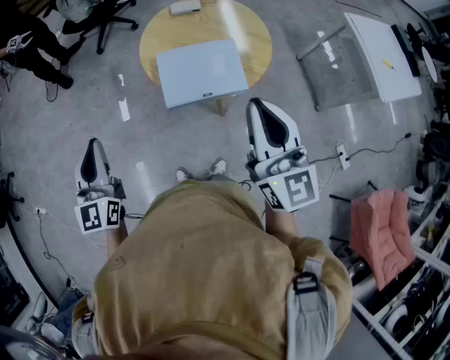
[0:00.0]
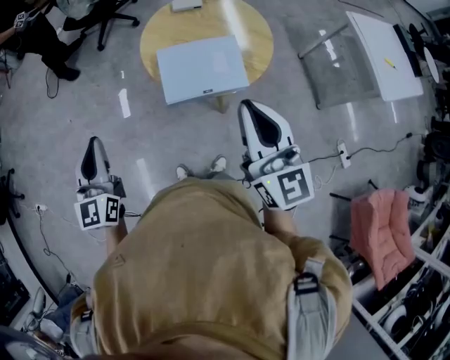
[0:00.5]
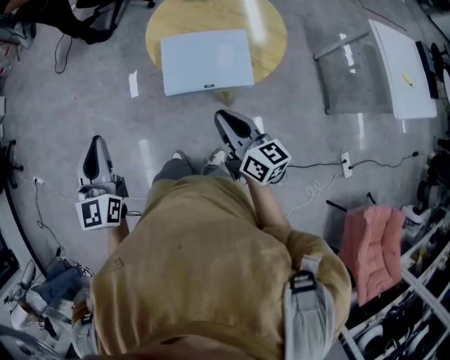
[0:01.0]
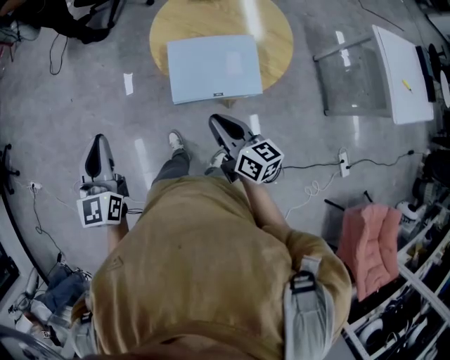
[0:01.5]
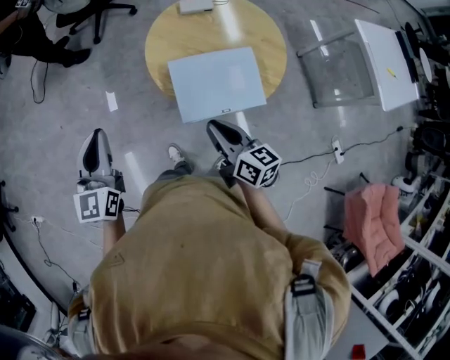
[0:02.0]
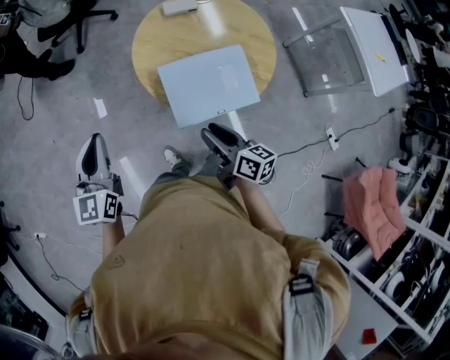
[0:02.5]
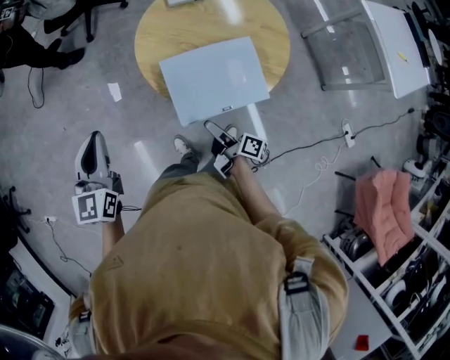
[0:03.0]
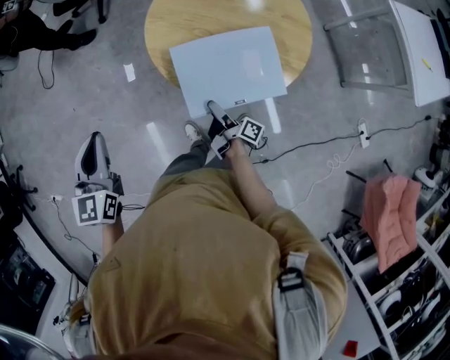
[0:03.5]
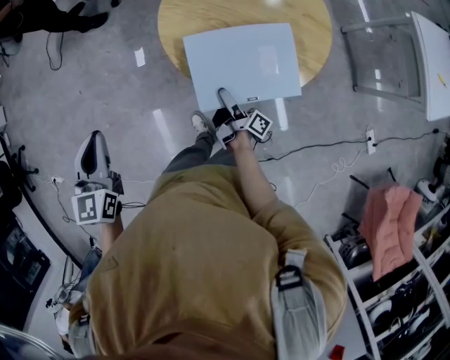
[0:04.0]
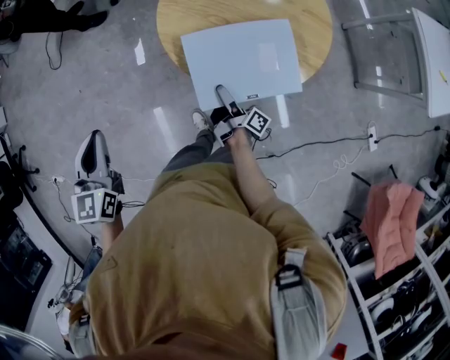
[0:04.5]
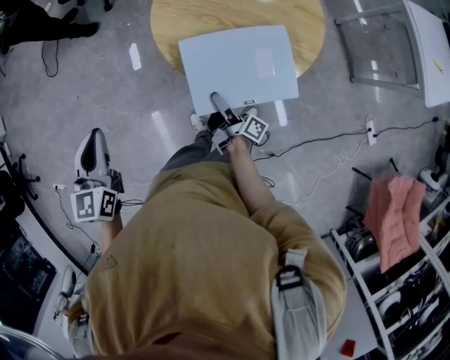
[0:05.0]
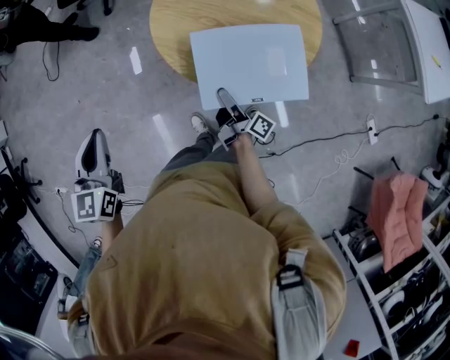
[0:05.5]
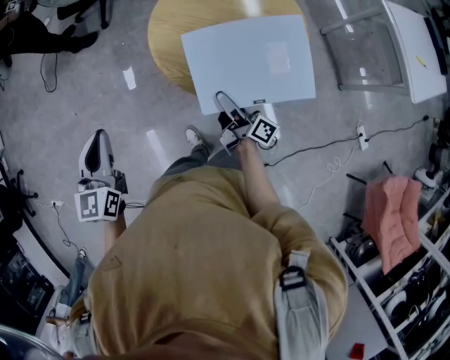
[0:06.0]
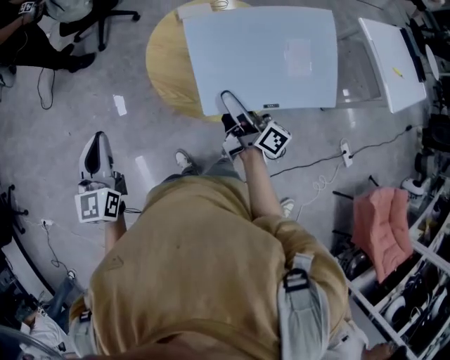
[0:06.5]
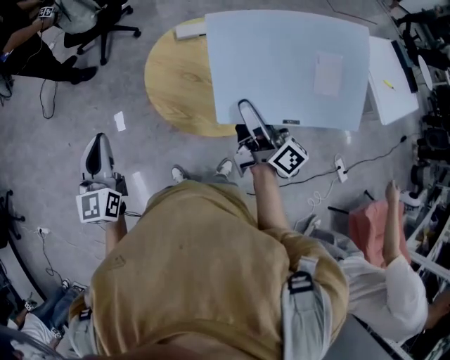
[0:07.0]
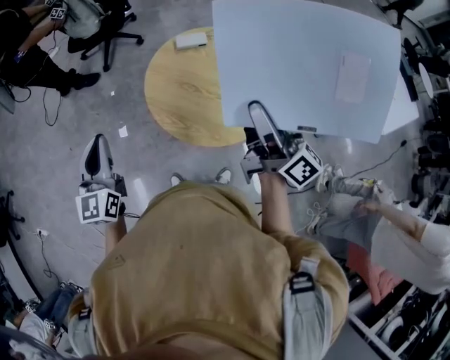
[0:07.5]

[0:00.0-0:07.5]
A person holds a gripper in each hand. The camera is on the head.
0:00.0 to 0:02.0: The right gripper travels downward, to the left and forward by some 25 cm, and turns by about 40 degrees. Meanwhile the left gripper shifts approximately 15 cm forward.
0:02.0 to 0:04.0: The right gripper heads downward, covering approximately 20 cm, twists about 60 degrees clockwise, seen from behind, and opens its fingers.
0:04.0 to 0:05.5: The grippers move only a little.
0:05.5 to 0:07.5: The left gripper shifts approximately 10 cm upward and forward, and changes its angle by about 20 degrees. Meanwhile the right gripper shifts roughly 35 cm upward, and swivels approximately 40 degrees.

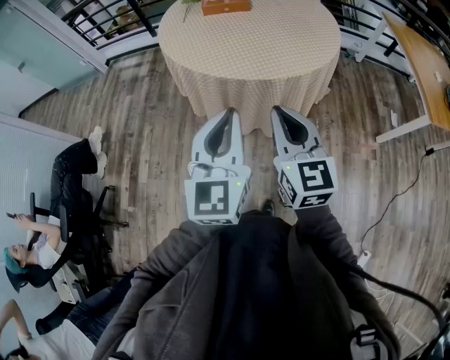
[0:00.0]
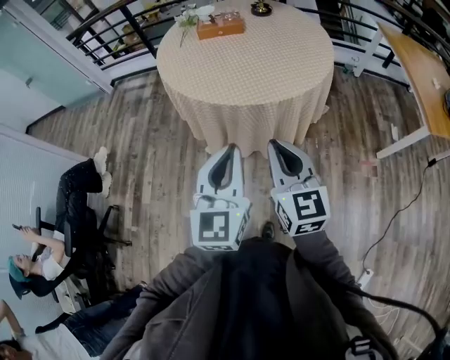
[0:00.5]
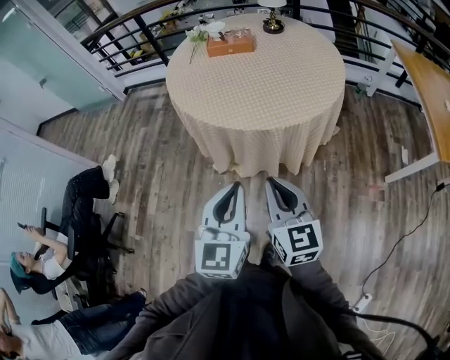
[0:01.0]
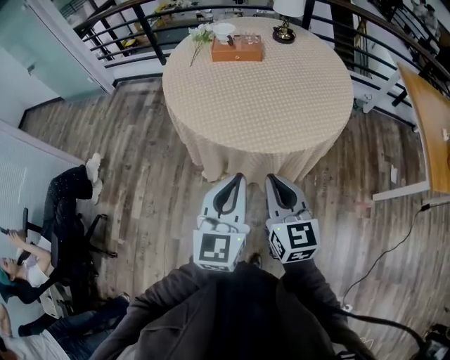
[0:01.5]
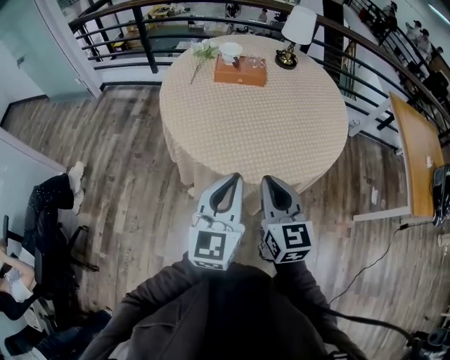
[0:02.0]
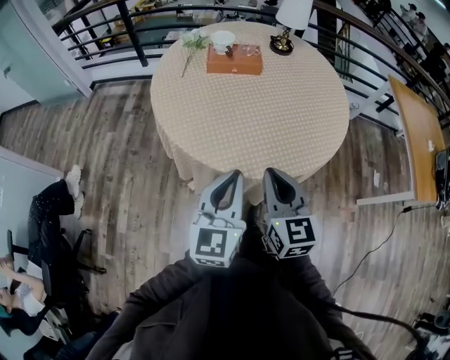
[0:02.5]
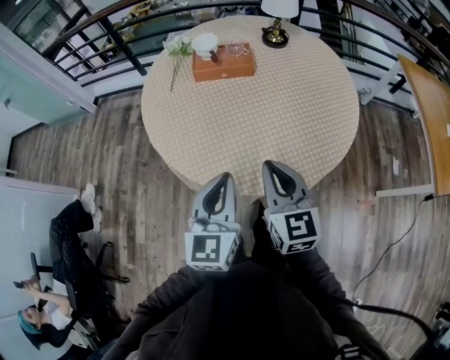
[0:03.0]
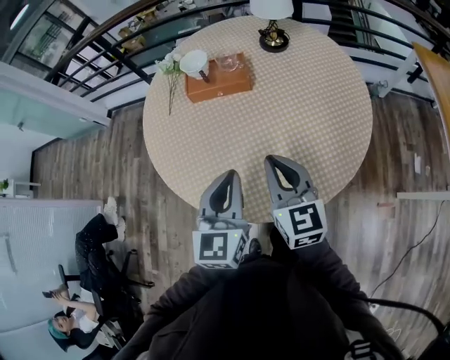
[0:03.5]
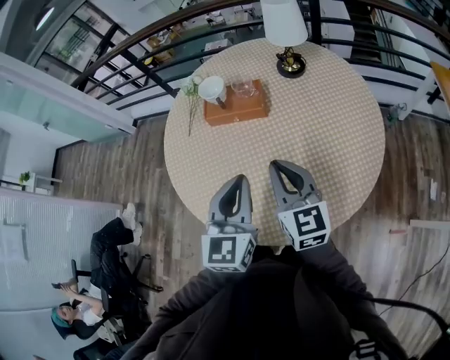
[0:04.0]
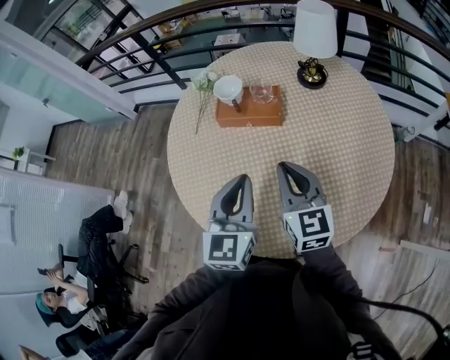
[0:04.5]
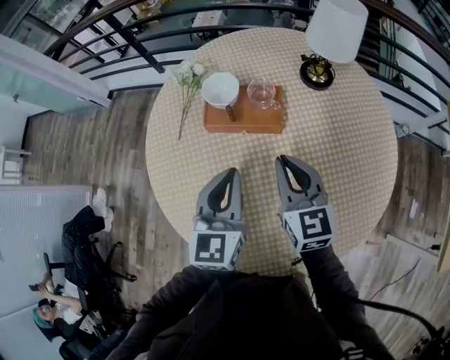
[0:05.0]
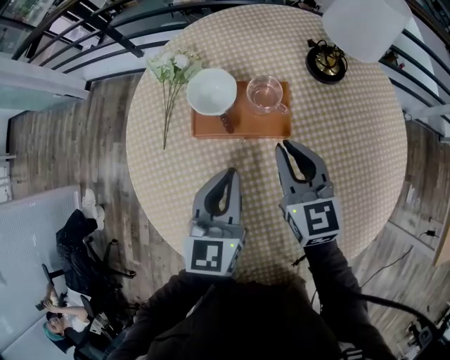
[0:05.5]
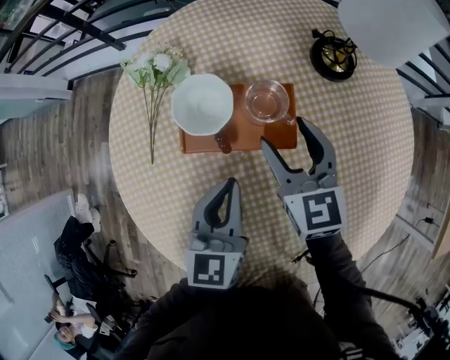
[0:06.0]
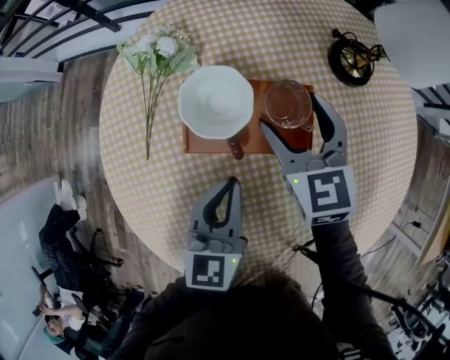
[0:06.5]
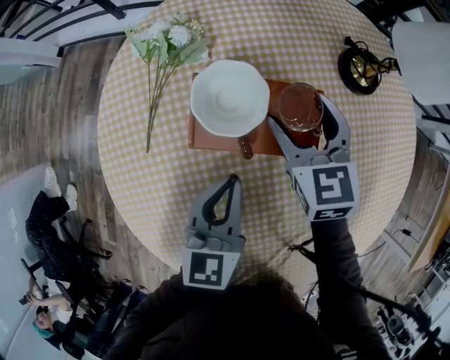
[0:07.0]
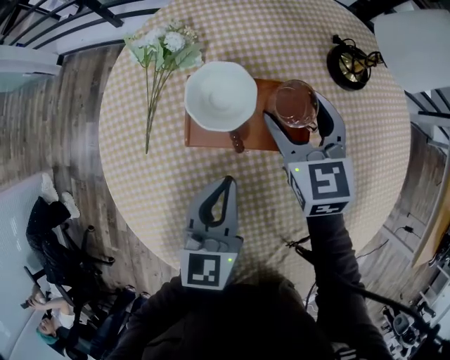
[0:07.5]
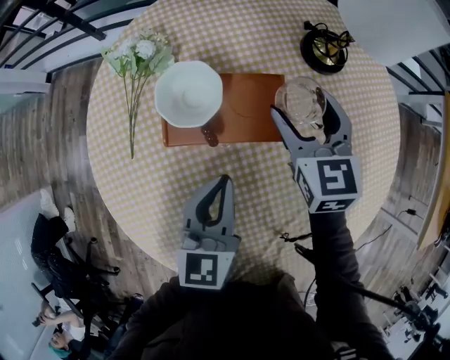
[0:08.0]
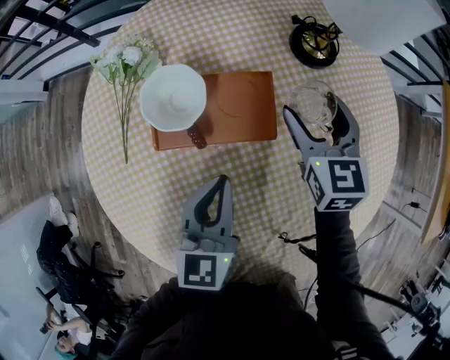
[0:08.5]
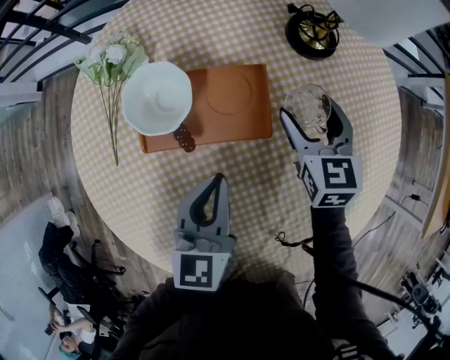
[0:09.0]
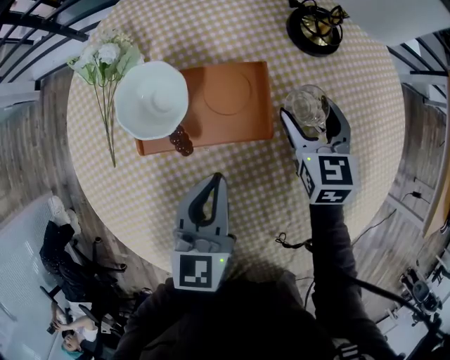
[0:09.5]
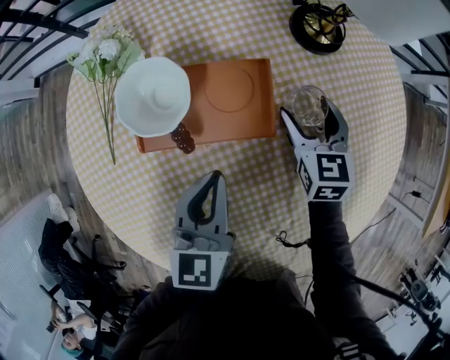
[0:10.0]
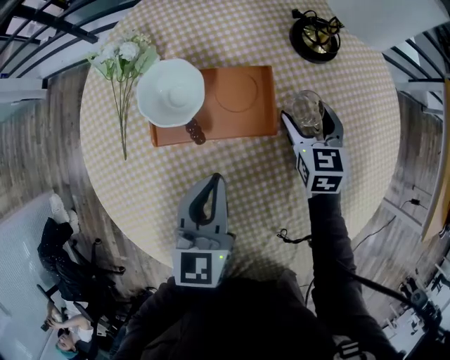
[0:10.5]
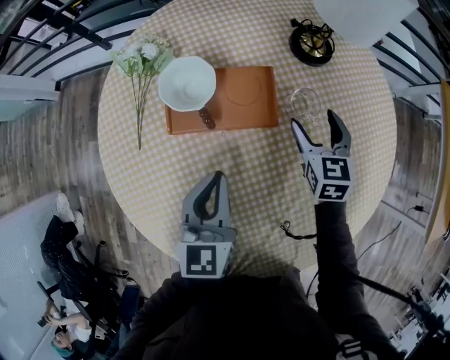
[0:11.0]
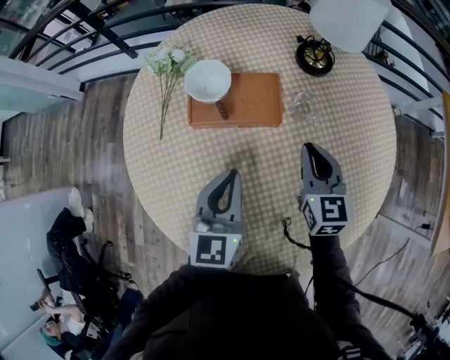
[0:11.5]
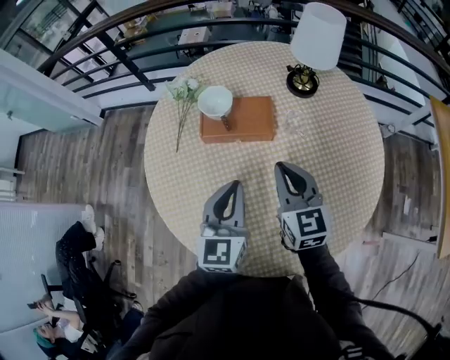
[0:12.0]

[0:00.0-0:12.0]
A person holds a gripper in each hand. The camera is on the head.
0:00.0 to 0:02.0: The grippers both shift forward by some 25 cm.
0:02.0 to 0:04.0: The right gripper heads forward, covering roughly 25 cm, while the left gripper heads forward and to the right, covering some 25 cm.
0:04.0 to 0:06.0: The left gripper heads forward and downward, covering about 30 cm. Meanwhile the right gripper heads forward, covering roughly 30 cm, and opens up.
0:06.0 to 0:08.0: The right gripper goes about 5 cm to the right.
0:08.0 to 0:10.0: The right gripper travels downward and to the right by roughly 15 cm.
0:10.0 to 0:12.0: The right gripper heads backward and upward, covering some 25 cm, changes its angle by roughly 20 degrees, and closes its fingers; the left gripper heads upward and backward, covering roughly 20 cm.

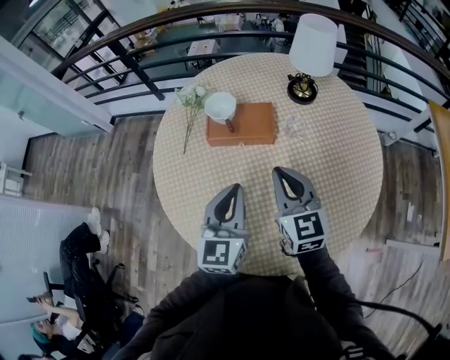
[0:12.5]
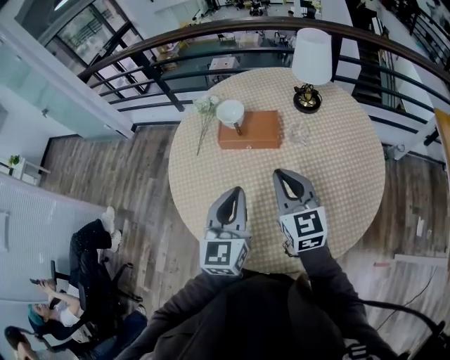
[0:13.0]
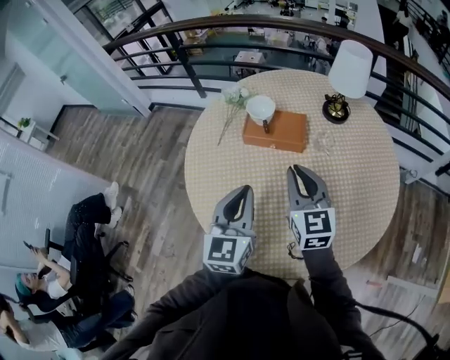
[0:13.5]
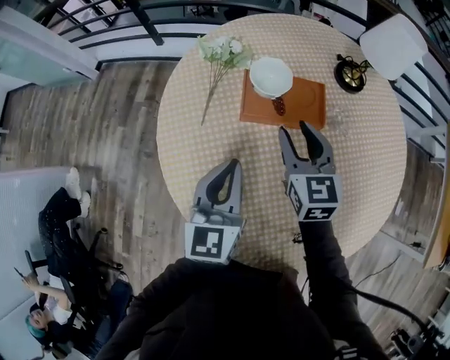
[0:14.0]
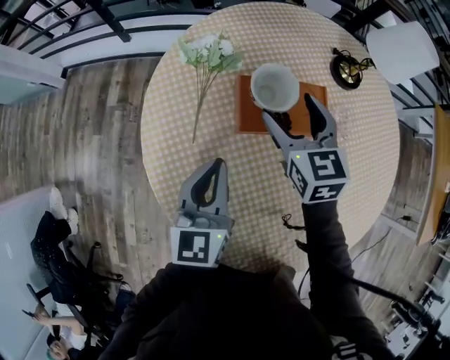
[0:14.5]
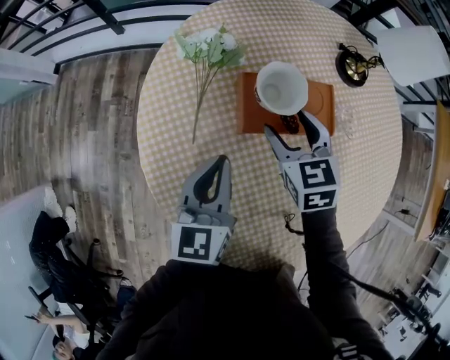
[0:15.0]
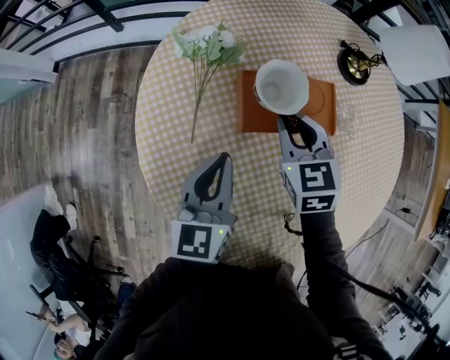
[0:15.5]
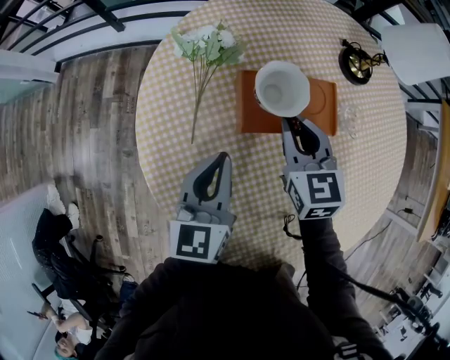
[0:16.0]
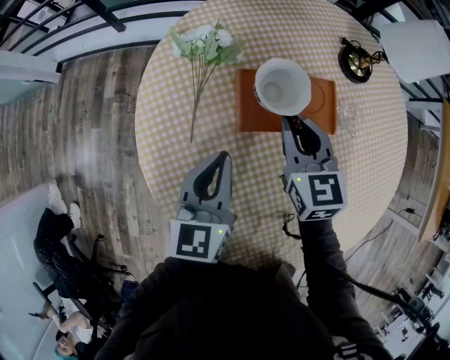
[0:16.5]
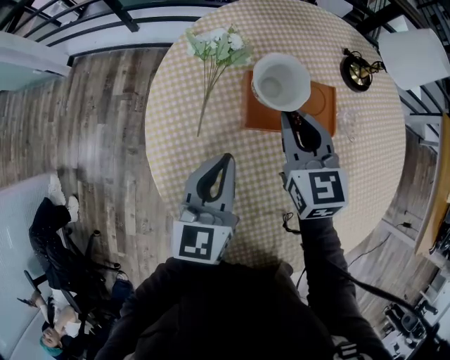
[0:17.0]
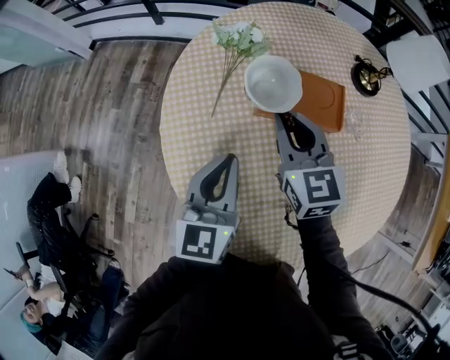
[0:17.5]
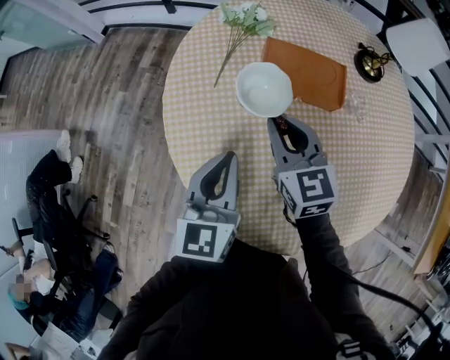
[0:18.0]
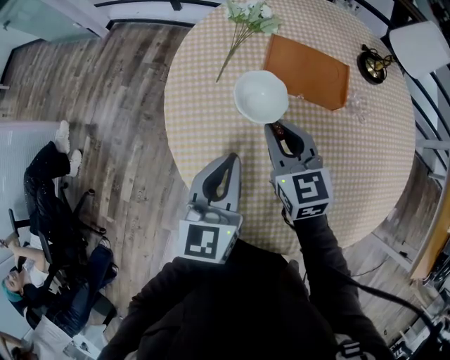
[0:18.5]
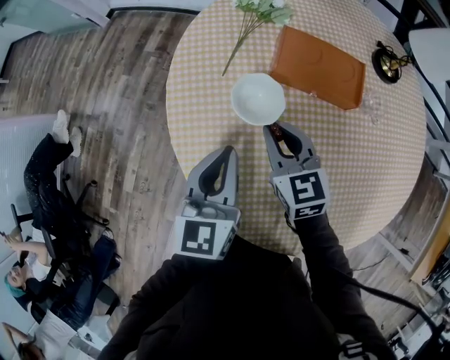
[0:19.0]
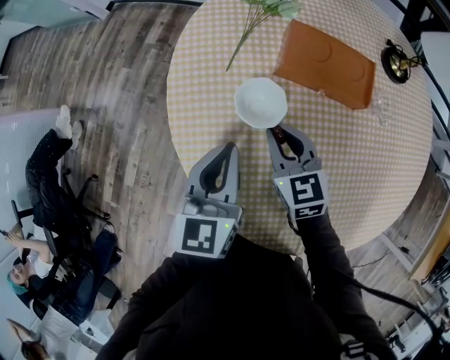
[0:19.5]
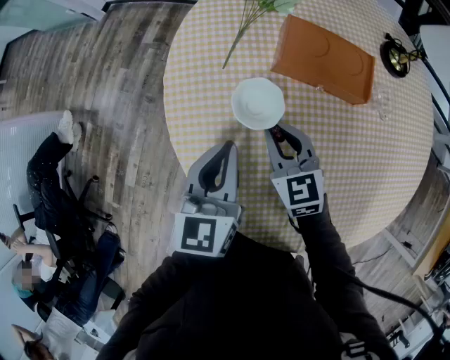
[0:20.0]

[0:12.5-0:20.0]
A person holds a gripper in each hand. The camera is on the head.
0:12.5 to 0:14.5: The right gripper moves forward and to the left, approximately 25 cm, and opens. The left gripper shifts some 25 cm to the left, forward and downward.
0:14.5 to 0:16.5: The right gripper closes up.
0:16.5 to 0:18.0: The right gripper heads backward and to the left, covering about 15 cm, and changes its angle by roughly 20 degrees. Meanwhile the left gripper heads backward, covering about 15 cm.
0:18.0 to 0:20.0: The left gripper travels downward by about 5 cm, while the right gripper travels downward by some 10 cm.
